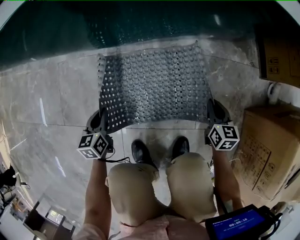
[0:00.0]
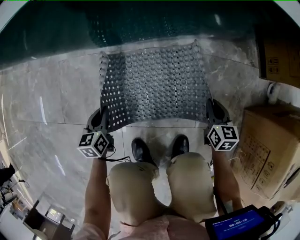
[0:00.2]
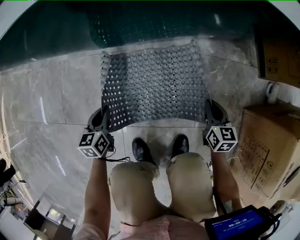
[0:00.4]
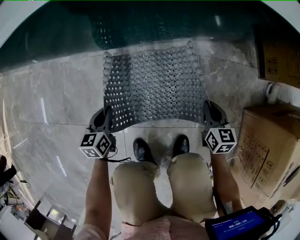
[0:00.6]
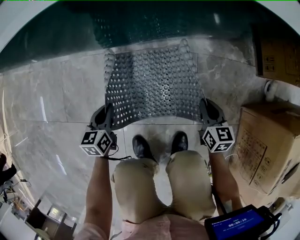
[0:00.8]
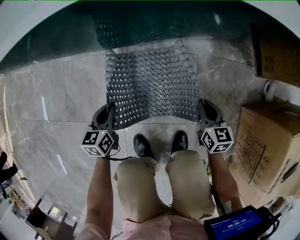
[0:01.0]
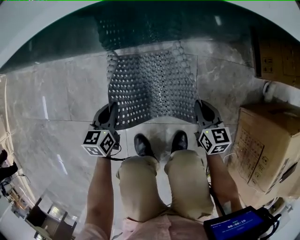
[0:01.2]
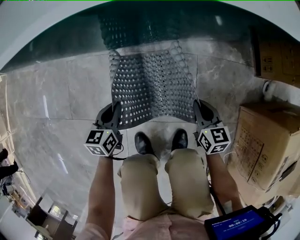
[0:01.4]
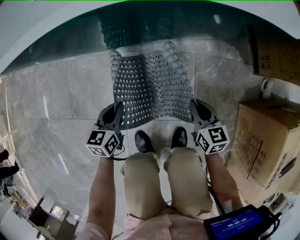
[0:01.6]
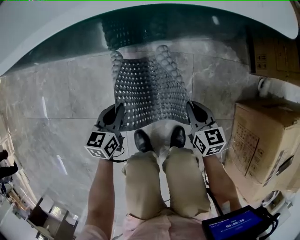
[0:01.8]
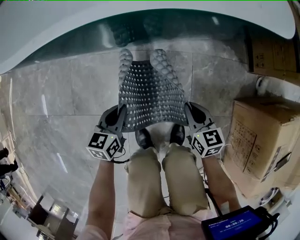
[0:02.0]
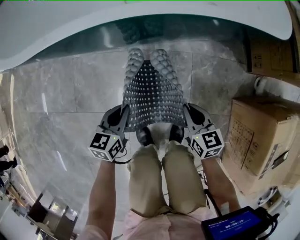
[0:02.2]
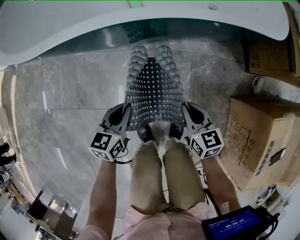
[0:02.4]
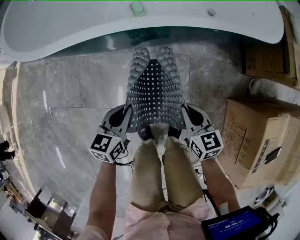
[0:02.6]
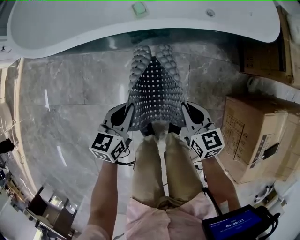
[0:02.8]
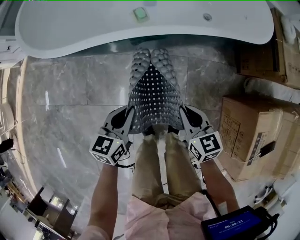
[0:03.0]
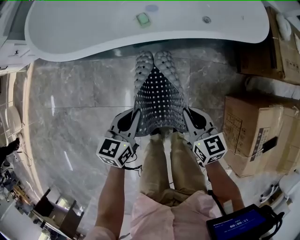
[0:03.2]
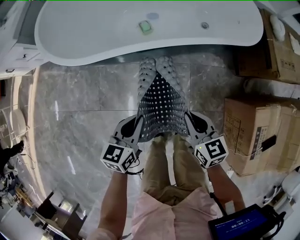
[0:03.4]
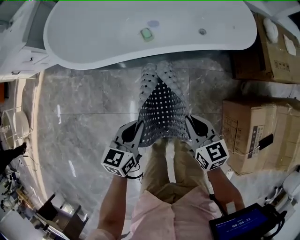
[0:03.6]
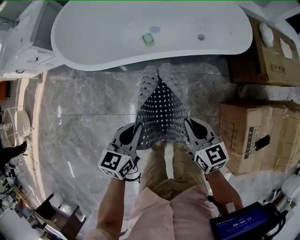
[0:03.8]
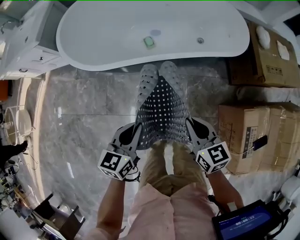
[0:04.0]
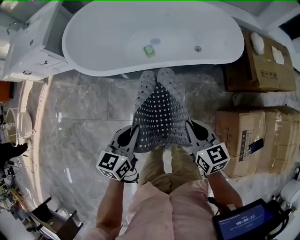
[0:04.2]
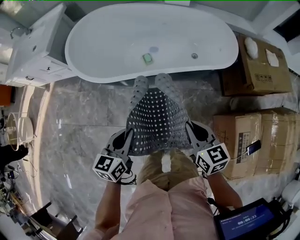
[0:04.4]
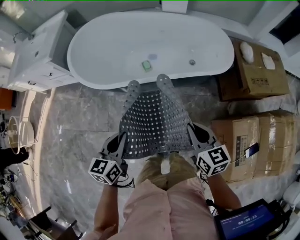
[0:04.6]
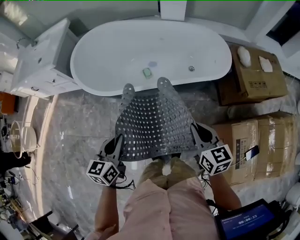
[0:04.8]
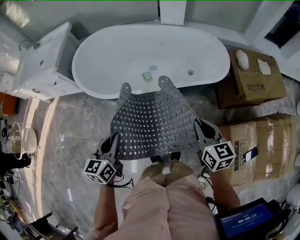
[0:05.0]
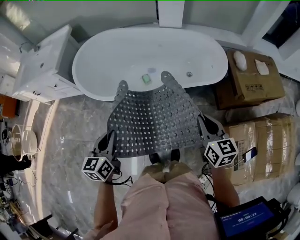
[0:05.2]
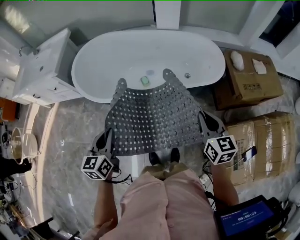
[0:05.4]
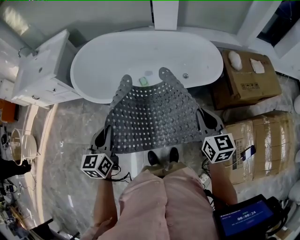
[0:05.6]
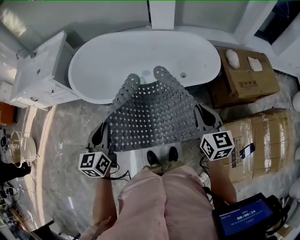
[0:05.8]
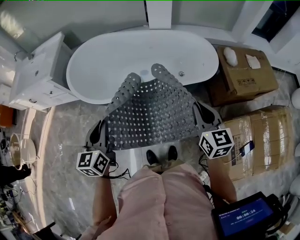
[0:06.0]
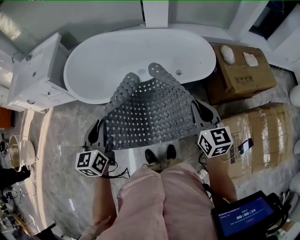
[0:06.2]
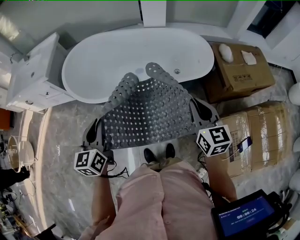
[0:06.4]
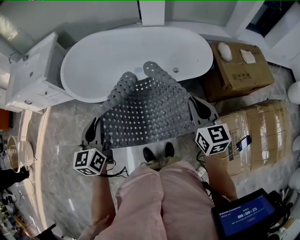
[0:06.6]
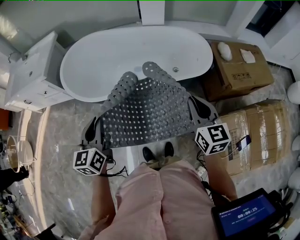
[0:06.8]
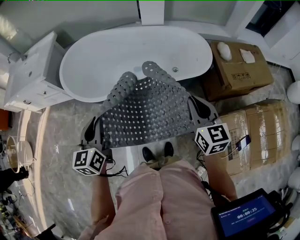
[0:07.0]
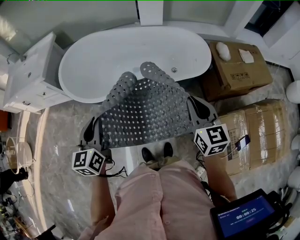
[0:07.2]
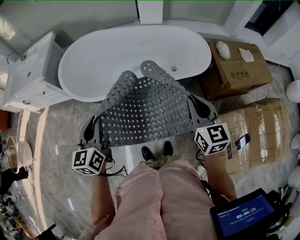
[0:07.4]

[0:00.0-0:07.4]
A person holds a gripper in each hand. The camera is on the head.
0:00.0 to 0:01.4: The left gripper moves upward and to the right, approximately 15 cm. Meanwhile the right gripper goes about 15 cm upward and to the left.
0:01.4 to 0:03.0: The grippers both shift upward by some 30 cm.
0:03.0 to 0:04.4: The two grippers go some 30 cm upward.
0:04.4 to 0:06.0: The left gripper travels upward and forward by some 15 cm. The right gripper goes roughly 15 cm upward, to the right and forward, and changes its angle by roughly 20 degrees.
0:06.0 to 0:07.4: The grippers move only a little.

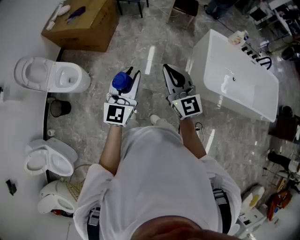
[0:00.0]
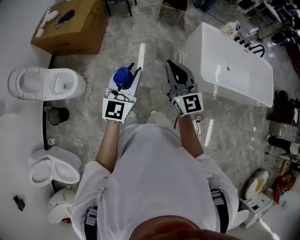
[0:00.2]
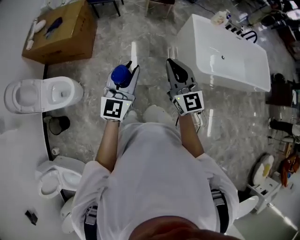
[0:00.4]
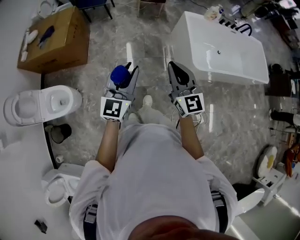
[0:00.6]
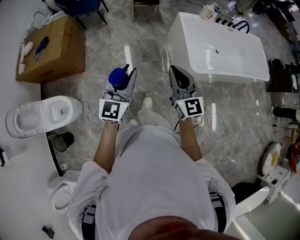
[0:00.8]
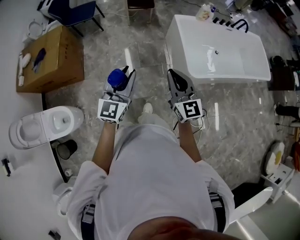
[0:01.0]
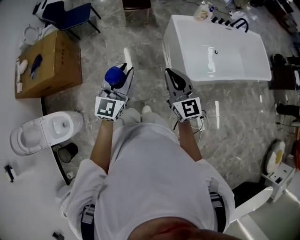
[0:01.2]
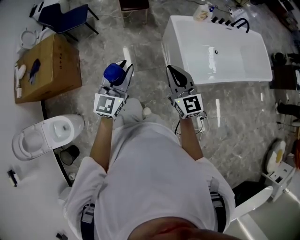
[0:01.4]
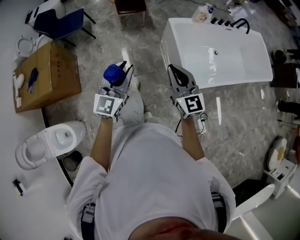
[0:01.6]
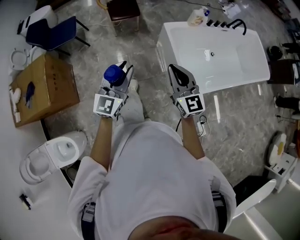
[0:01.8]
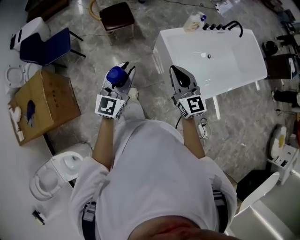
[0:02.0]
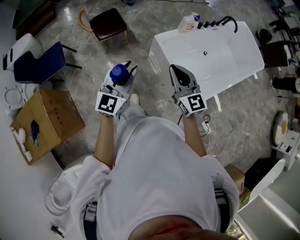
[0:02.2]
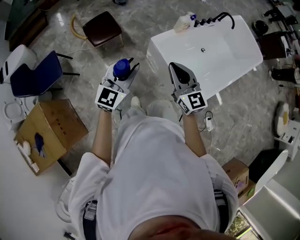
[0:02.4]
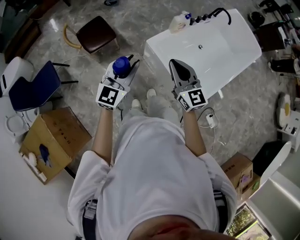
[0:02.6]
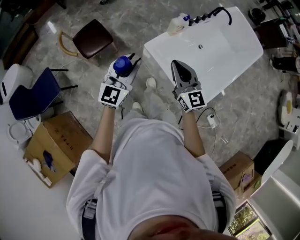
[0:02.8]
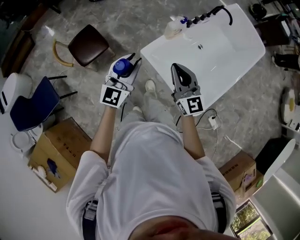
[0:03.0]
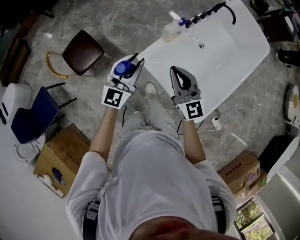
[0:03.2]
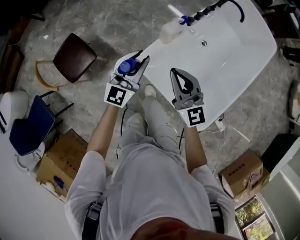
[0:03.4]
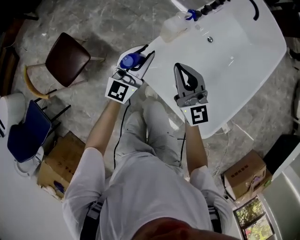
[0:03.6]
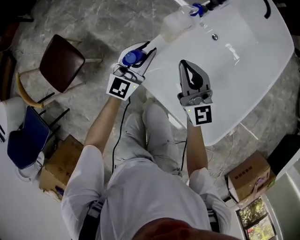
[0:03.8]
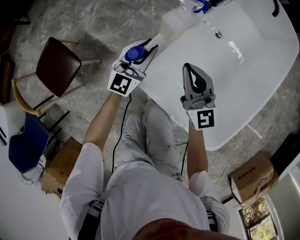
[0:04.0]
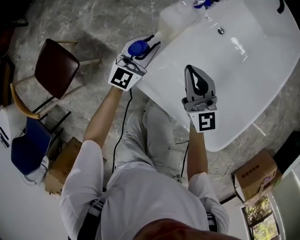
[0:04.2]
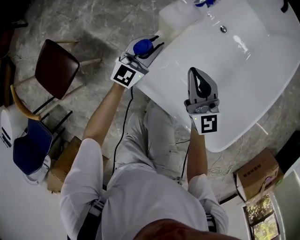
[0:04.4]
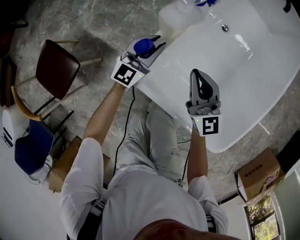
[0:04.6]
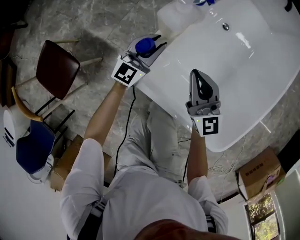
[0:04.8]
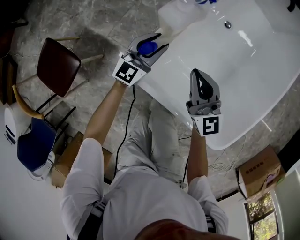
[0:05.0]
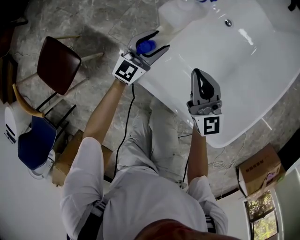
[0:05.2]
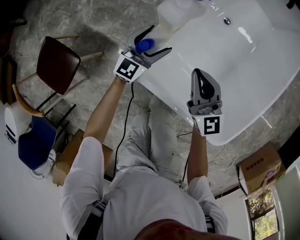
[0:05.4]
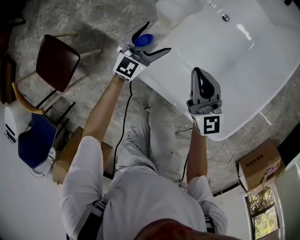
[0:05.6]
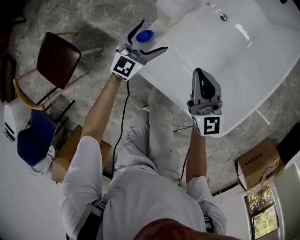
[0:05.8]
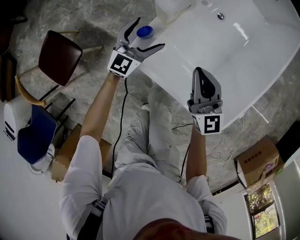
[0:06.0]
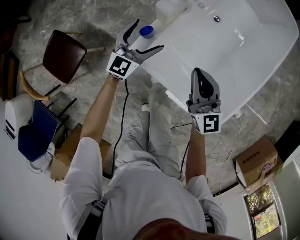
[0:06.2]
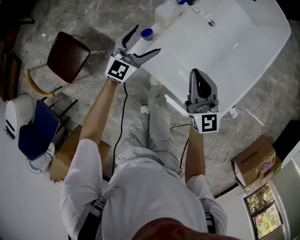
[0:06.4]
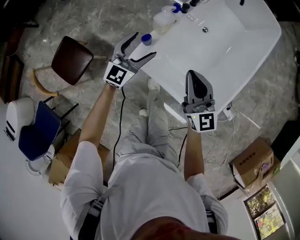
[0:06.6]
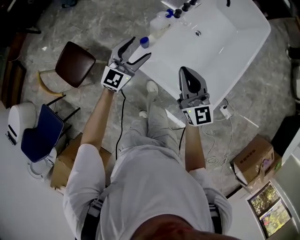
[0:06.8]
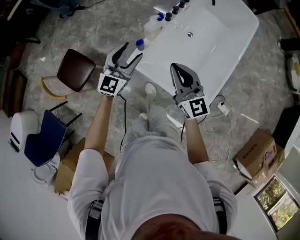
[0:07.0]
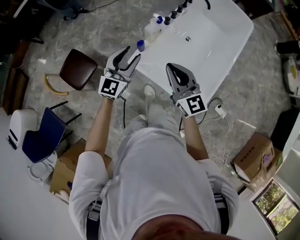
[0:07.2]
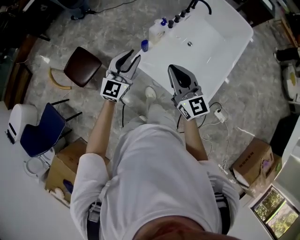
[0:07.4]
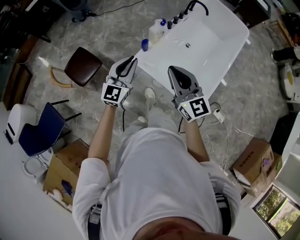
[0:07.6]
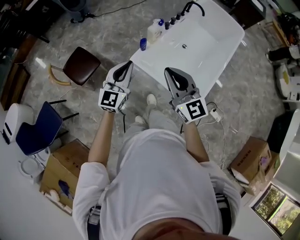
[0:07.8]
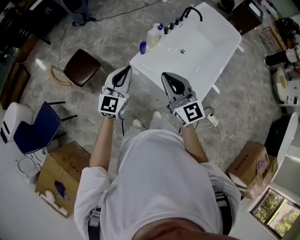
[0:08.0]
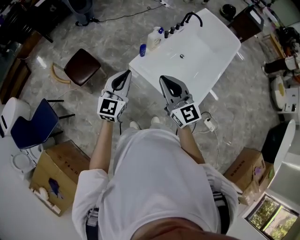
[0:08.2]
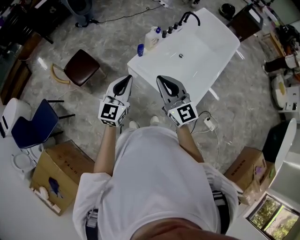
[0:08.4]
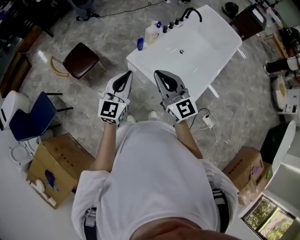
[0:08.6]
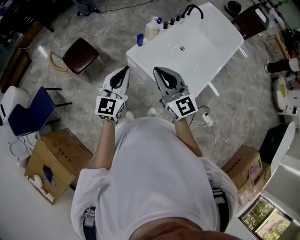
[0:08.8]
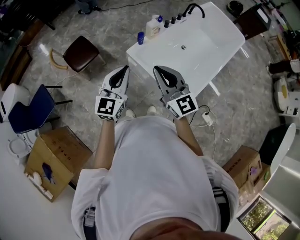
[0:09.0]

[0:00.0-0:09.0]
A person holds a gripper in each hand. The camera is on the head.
0:00.0 to 0:01.6: The right gripper shifts by roughly 35 cm, and changes its angle by approximately 30 degrees. Meanwhile the left gripper changes place by roughly 35 cm, and changes its angle by roughly 30 degrees.
0:01.6 to 0:03.0: The two grippers travel together, approximately 50 cm. The left gripper swivels some 30 degrees, while the right gripper changes its angle by about 30 degrees.
0:03.0 to 0:04.4: The two grippers go approximately 50 cm downward and forward. The left gripper swivels some 20 degrees.
0:04.4 to 0:06.0: The right gripper heads upward, covering approximately 5 cm, while the left gripper opens.
0:06.0 to 0:07.6: The grippers both shift upward and backward by approximately 50 cm. The left gripper closes.
0:07.6 to 0:09.0: The left gripper shifts approximately 15 cm backward. The right gripper is displaced backward by approximately 10 cm.

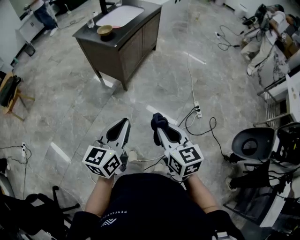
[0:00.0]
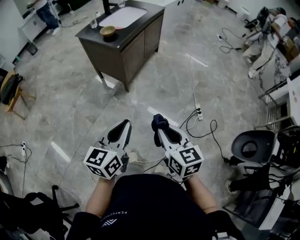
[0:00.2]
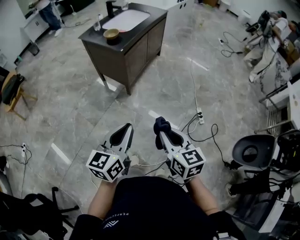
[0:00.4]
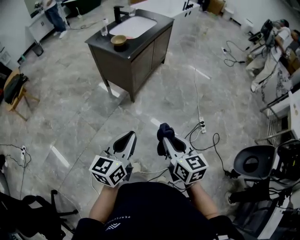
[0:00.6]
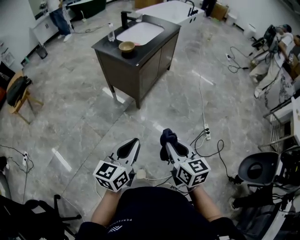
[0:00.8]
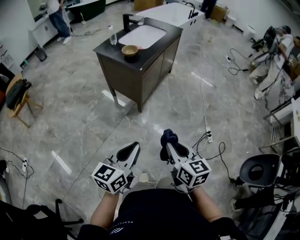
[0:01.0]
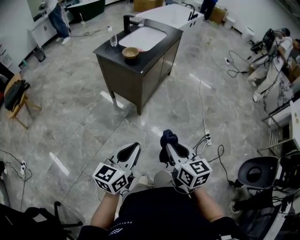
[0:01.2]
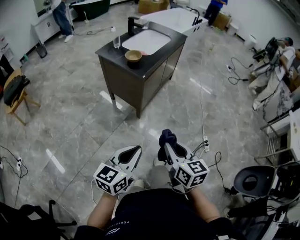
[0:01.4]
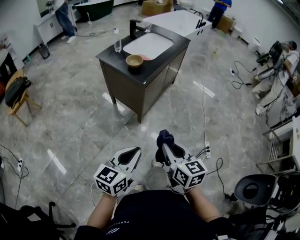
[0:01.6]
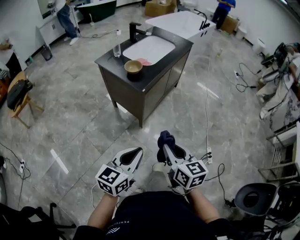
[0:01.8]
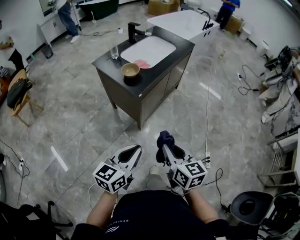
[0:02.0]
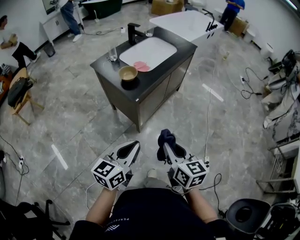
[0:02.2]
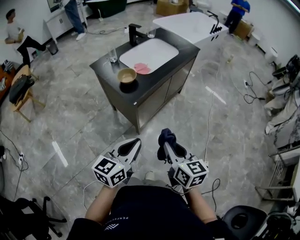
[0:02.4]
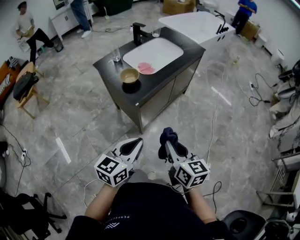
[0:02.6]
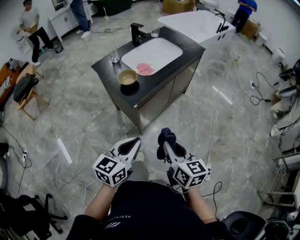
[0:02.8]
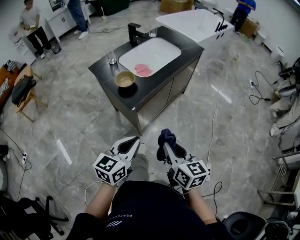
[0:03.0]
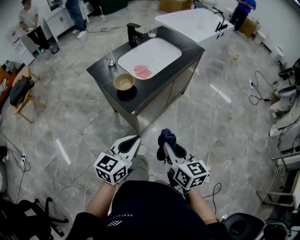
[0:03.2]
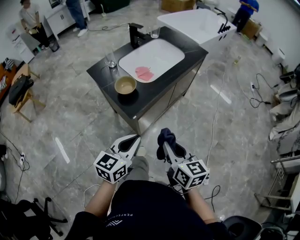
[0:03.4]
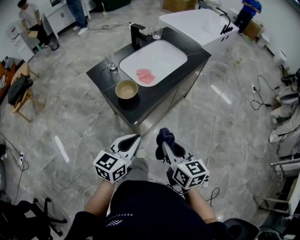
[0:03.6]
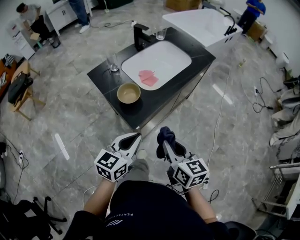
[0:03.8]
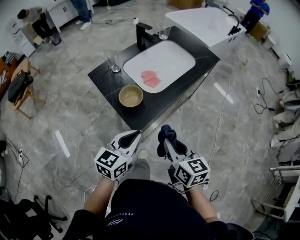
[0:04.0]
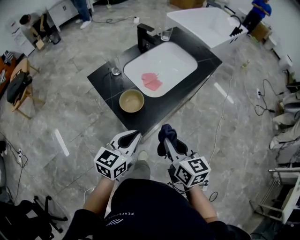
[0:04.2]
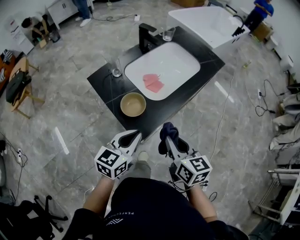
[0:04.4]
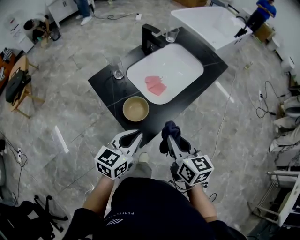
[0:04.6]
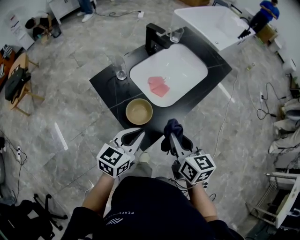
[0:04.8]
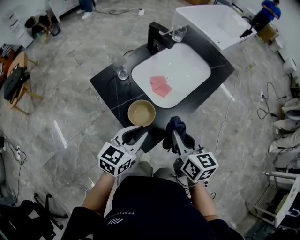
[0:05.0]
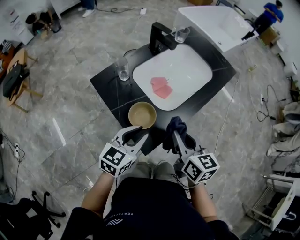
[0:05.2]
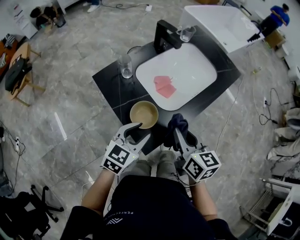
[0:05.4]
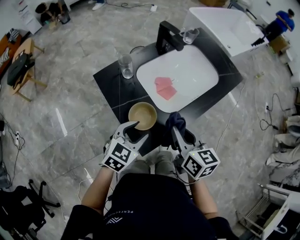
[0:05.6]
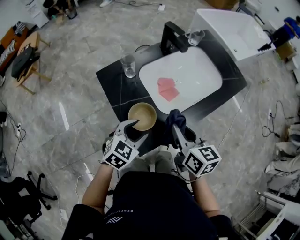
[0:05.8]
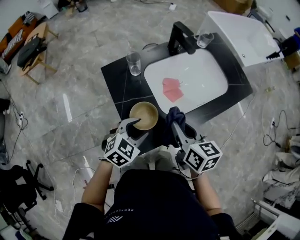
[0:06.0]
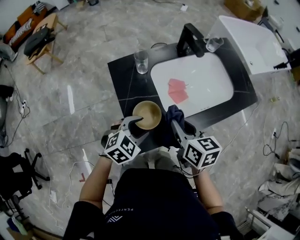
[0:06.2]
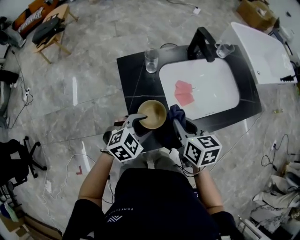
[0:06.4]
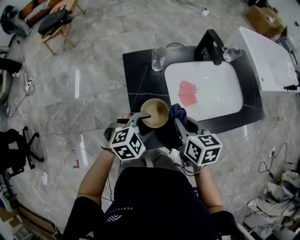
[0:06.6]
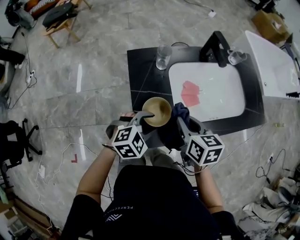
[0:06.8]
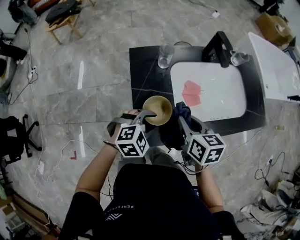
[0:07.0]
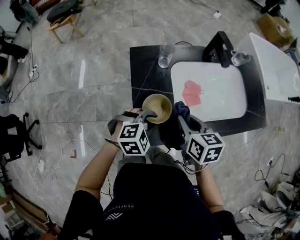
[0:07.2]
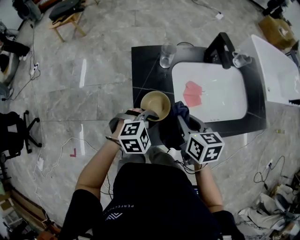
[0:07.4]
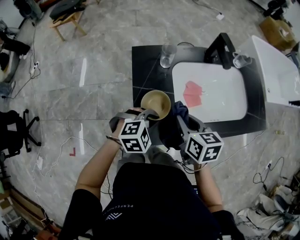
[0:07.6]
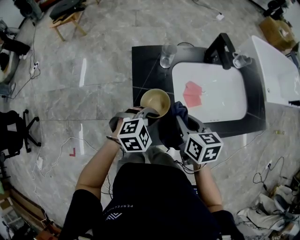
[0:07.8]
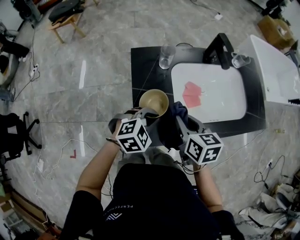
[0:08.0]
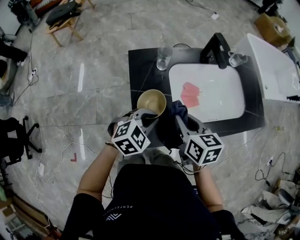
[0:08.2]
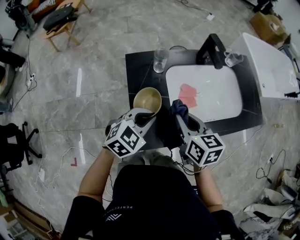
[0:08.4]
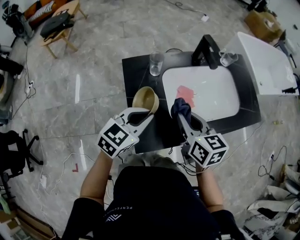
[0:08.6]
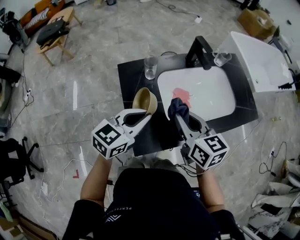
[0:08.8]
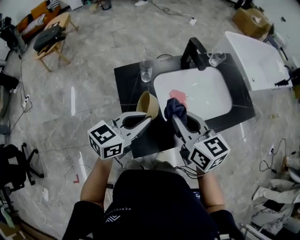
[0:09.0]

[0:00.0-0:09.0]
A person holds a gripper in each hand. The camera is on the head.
0:00.0 to 0:01.6: The two grippers go approximately 20 cm forward and to the left.
0:01.6 to 0:03.0: The right gripper shifts roughly 25 cm forward and to the right. The left gripper goes about 25 cm forward.
0:03.0 to 0:04.4: The grippers both shift forward by approximately 20 cm.
0:04.4 to 0:06.0: The left gripper moves forward and downward, about 10 cm, rotates some 30 degrees, and opens. The right gripper heads forward, covering about 15 cm.
0:06.0 to 0:07.6: The left gripper closes; the right gripper ends up some 5 cm from where it was, and changes its angle by some 20 degrees.
0:07.6 to 0:09.0: Both grippers travel together upward, about 15 cm. The right gripper turns by approximately 20 degrees. Meanwhile the left gripper tips its fingers upward by roughly 40 degrees.
